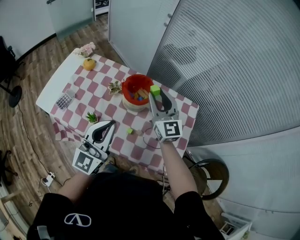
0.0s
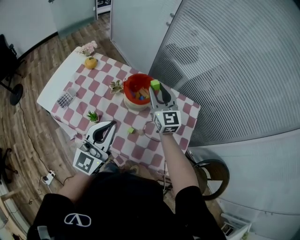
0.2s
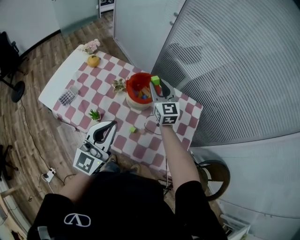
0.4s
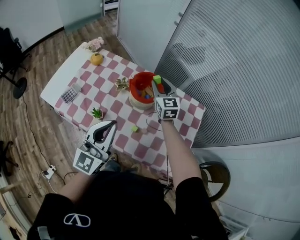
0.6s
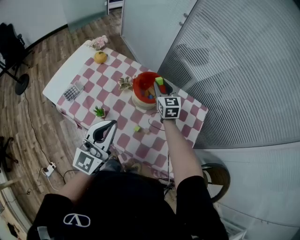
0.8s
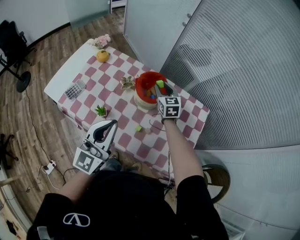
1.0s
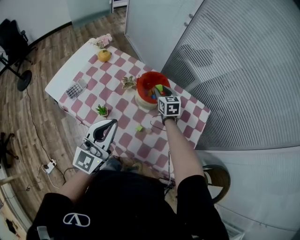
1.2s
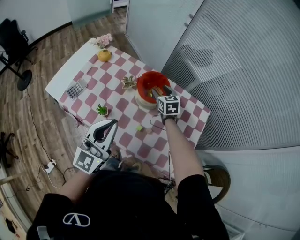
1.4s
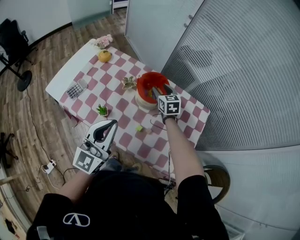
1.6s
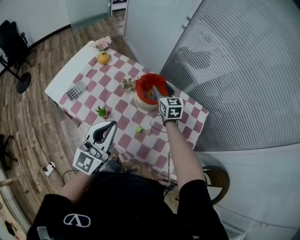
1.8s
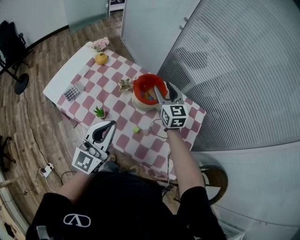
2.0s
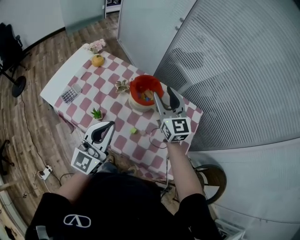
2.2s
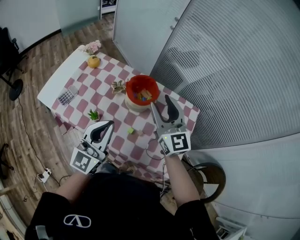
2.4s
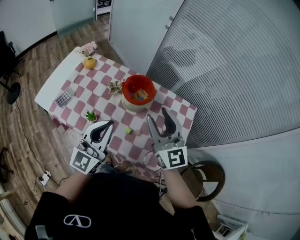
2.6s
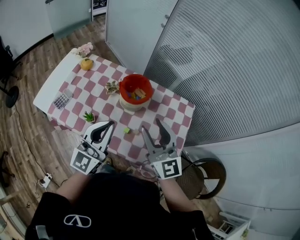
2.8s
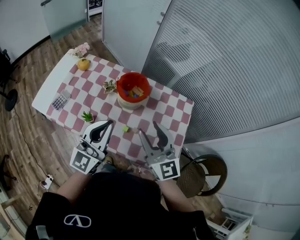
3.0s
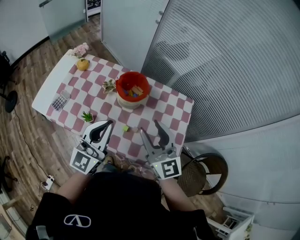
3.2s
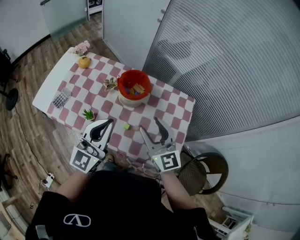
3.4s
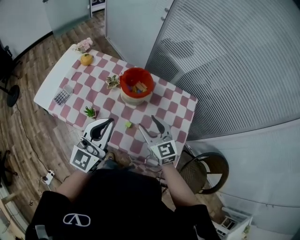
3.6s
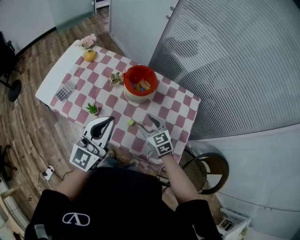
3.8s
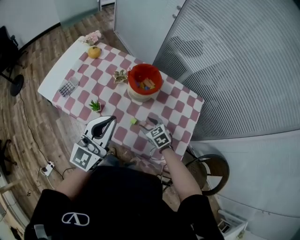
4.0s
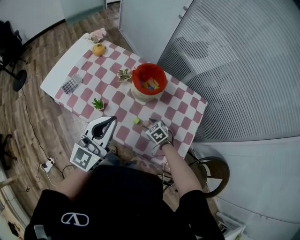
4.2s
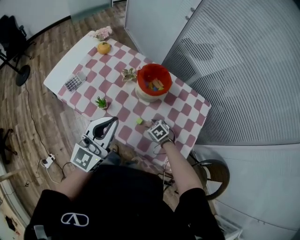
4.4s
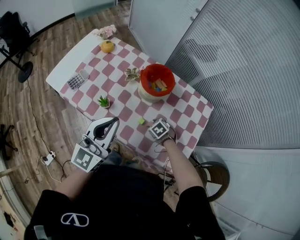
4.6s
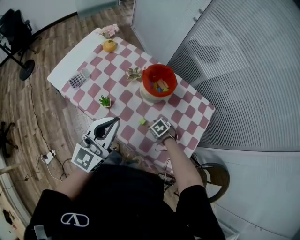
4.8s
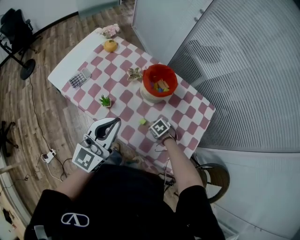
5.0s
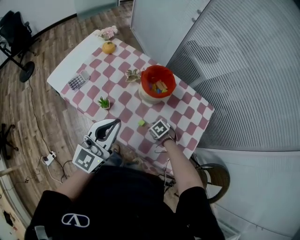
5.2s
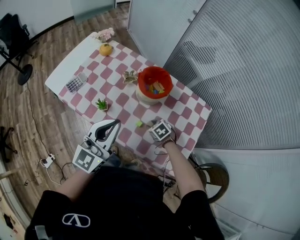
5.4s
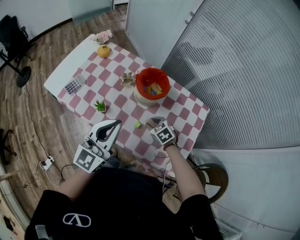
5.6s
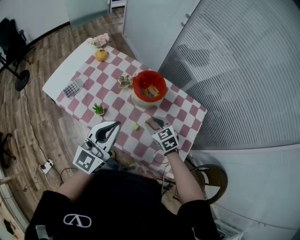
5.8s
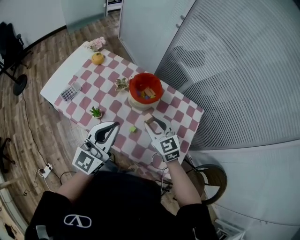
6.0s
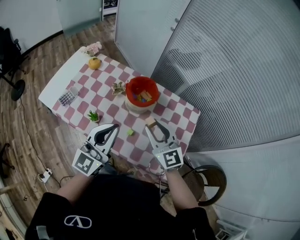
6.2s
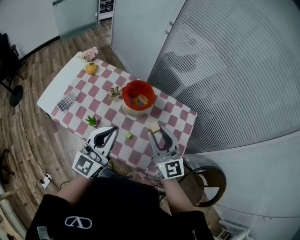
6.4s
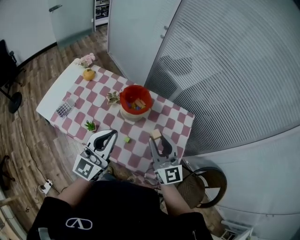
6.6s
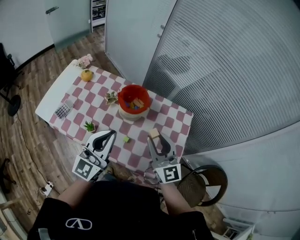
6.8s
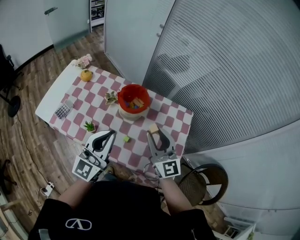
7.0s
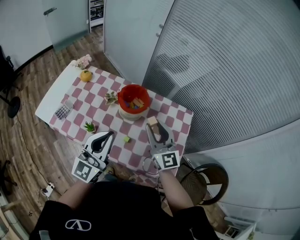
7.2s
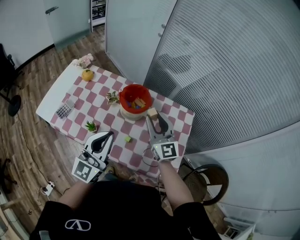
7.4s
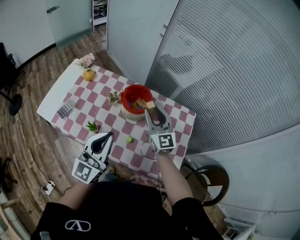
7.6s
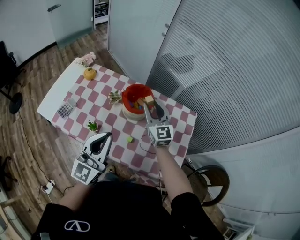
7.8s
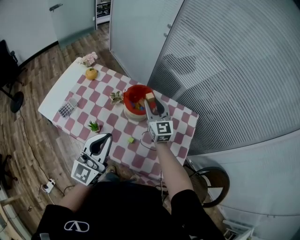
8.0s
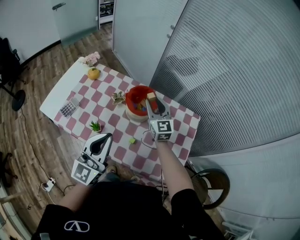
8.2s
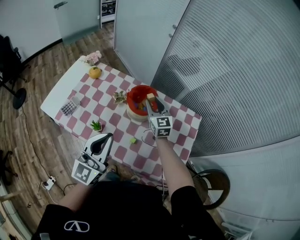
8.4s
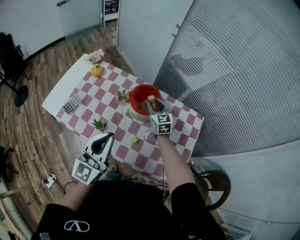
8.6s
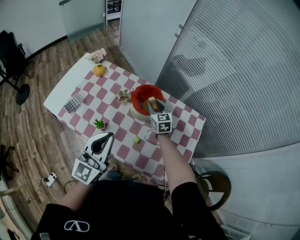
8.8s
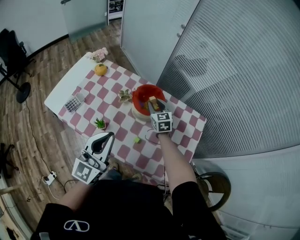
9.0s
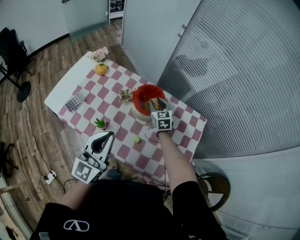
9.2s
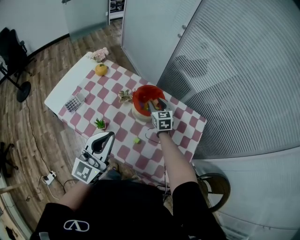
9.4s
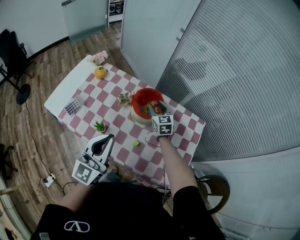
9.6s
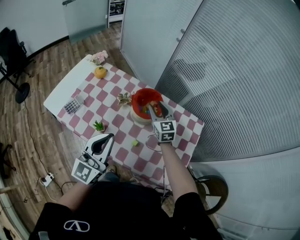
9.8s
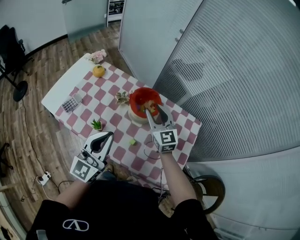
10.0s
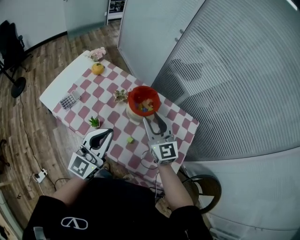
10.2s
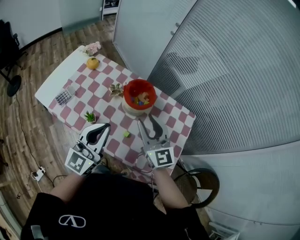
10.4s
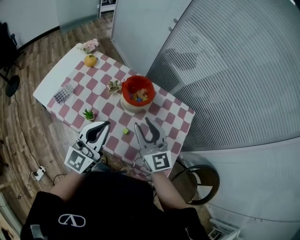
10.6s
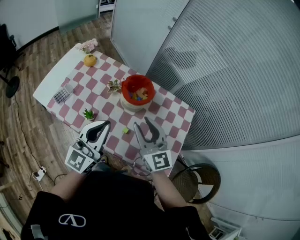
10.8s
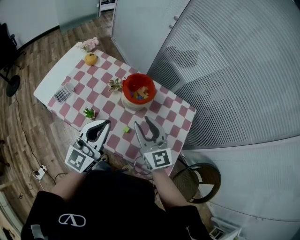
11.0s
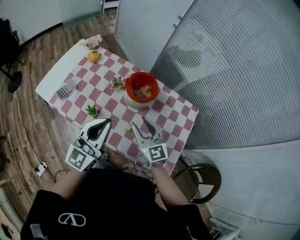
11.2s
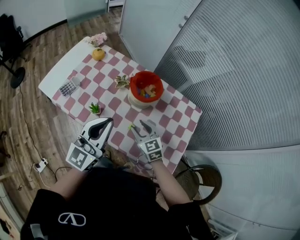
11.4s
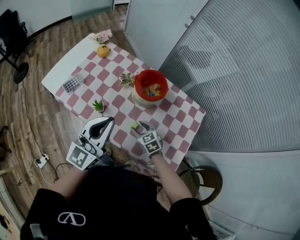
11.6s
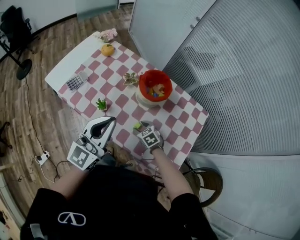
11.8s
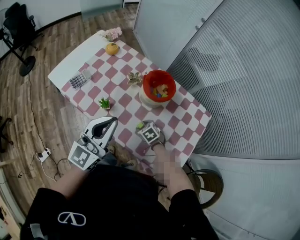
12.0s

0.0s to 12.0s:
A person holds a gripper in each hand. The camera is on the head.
0.0s to 1.6s: The right gripper heads downward and forward, covering roughly 20 cm, and tips its fingers downward by some 30 degrees.
1.6s to 3.0s: The right gripper is displaced backward and upward by approximately 35 cm, and tips its fingers upward by some 30 degrees.
3.0s to 4.4s: The right gripper is displaced downward by roughly 40 cm, and points its fingers some 70 degrees further downward.
4.4s to 6.0s: The right gripper travels upward by approximately 25 cm, and tilts its fingers some 40 degrees upward.
6.0s to 7.6s: The right gripper goes approximately 10 cm upward and forward, and rotates roughly 30 degrees.
7.6s to 9.0s: The right gripper heads downward and forward, covering roughly 20 cm, and changes its angle by approximately 30 degrees.
9.0s to 10.4s: The right gripper is displaced backward and upward by approximately 25 cm, and changes its angle by roughly 30 degrees.
10.4s to 12.0s: The right gripper is displaced downward by about 35 cm, and tips its fingers downward by about 60 degrees.

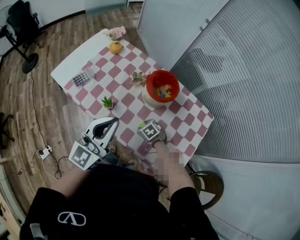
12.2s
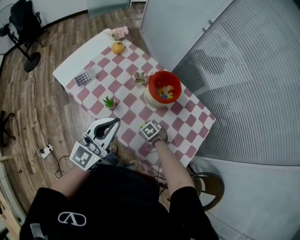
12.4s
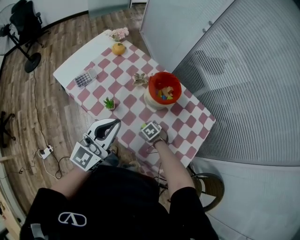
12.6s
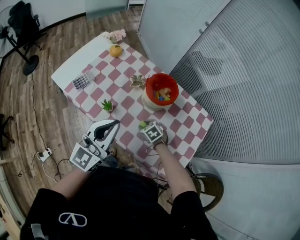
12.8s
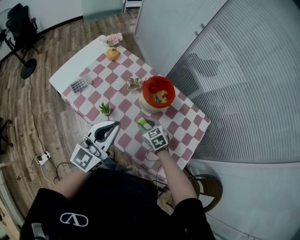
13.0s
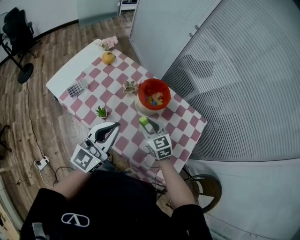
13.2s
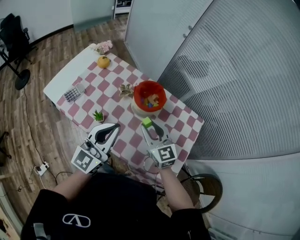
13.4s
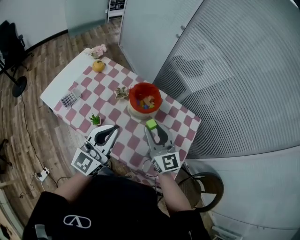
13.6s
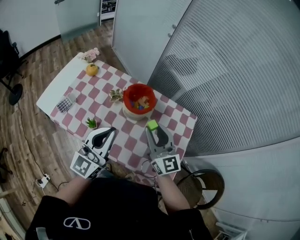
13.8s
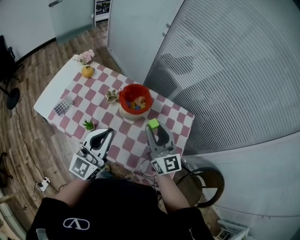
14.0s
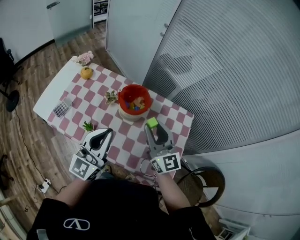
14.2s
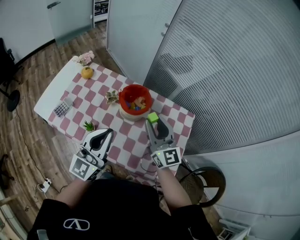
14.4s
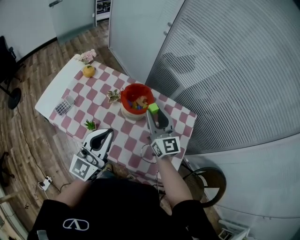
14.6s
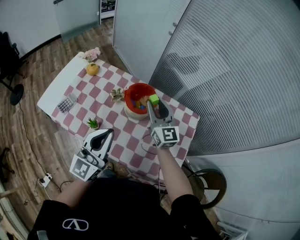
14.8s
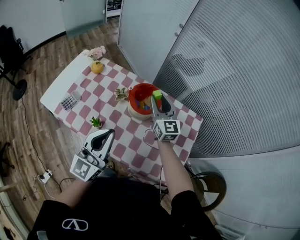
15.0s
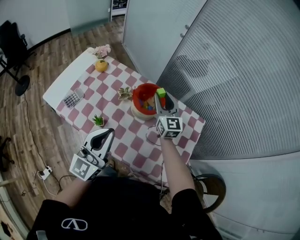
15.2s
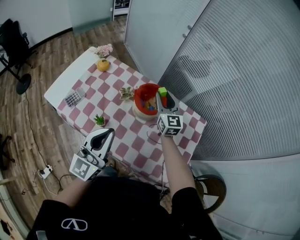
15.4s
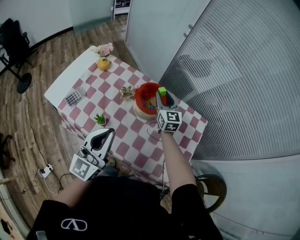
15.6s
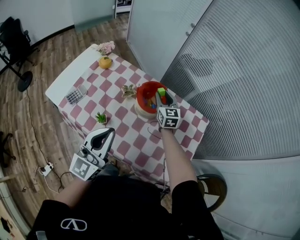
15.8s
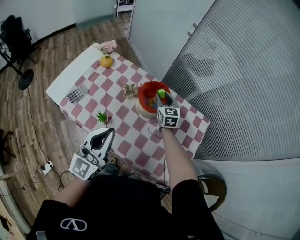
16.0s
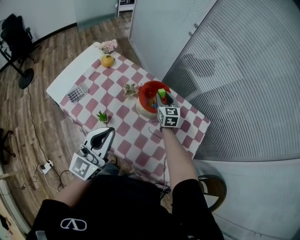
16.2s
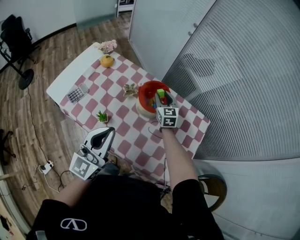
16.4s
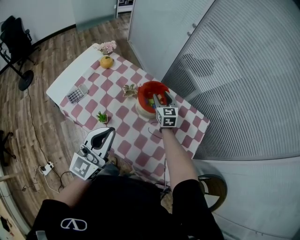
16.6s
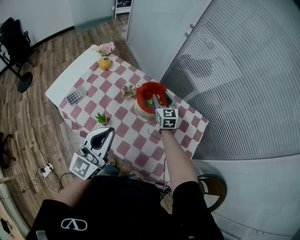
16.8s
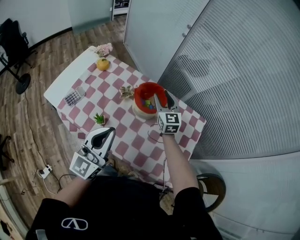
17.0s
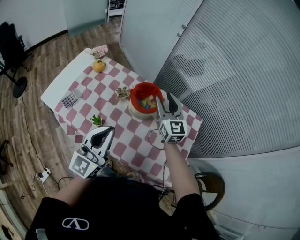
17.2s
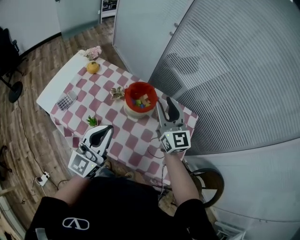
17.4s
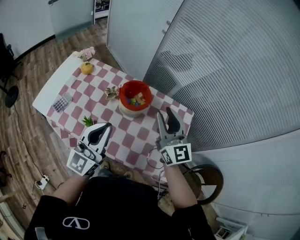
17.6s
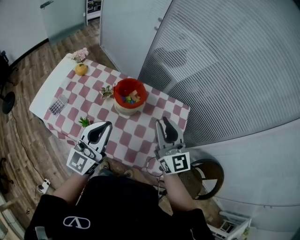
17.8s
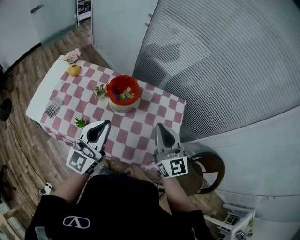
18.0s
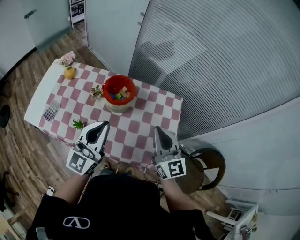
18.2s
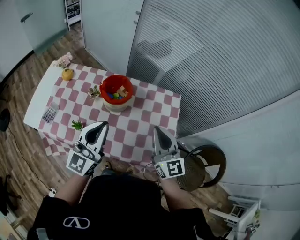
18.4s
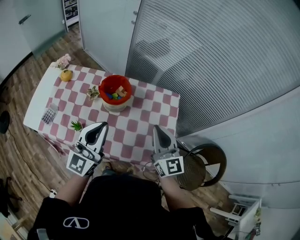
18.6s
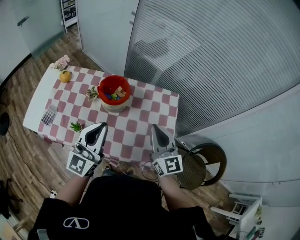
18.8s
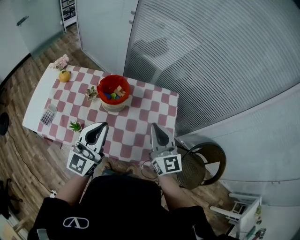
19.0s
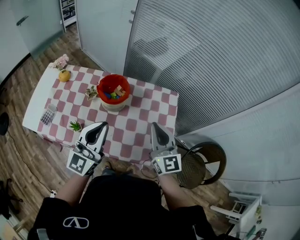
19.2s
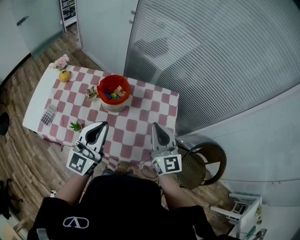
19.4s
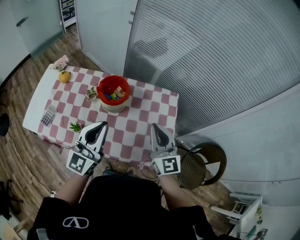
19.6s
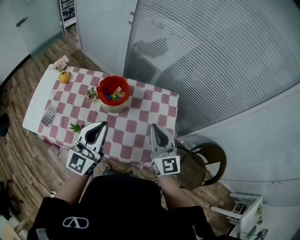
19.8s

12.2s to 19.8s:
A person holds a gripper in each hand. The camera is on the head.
12.2s to 13.8s: The left gripper moves about 5 cm, while the right gripper goes approximately 40 cm upward, and points its fingers about 70 degrees further upward.
13.8s to 15.2s: The right gripper travels forward by about 15 cm.
15.2s to 16.8s: The right gripper shifts roughly 10 cm downward.
16.8s to 18.2s: The left gripper is displaced to the right by roughly 10 cm. The right gripper travels backward, upward and to the right by roughly 35 cm, swivels some 20 degrees, and closes its fingers.
18.2s to 19.8s: The grippers stay close to where they were, moving slightly.

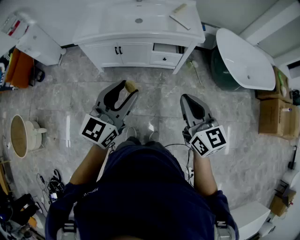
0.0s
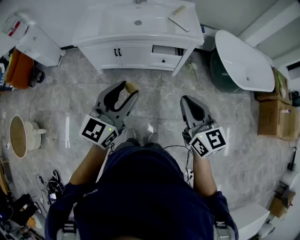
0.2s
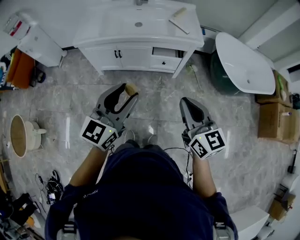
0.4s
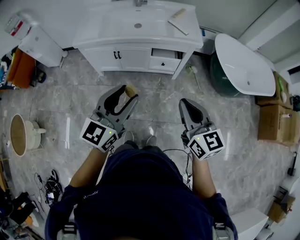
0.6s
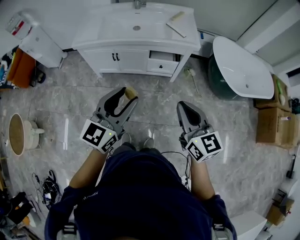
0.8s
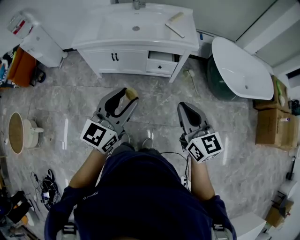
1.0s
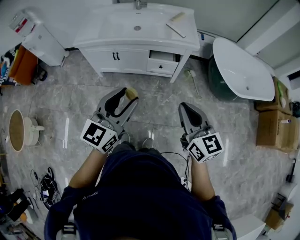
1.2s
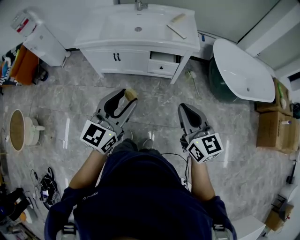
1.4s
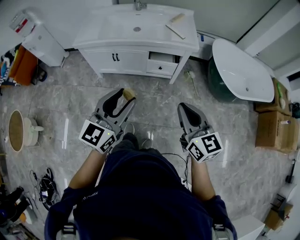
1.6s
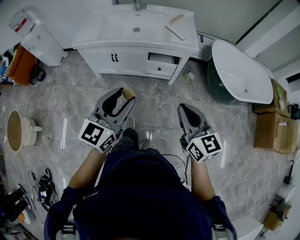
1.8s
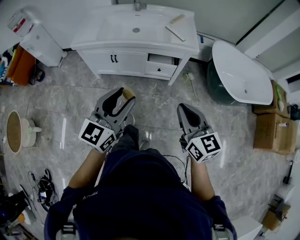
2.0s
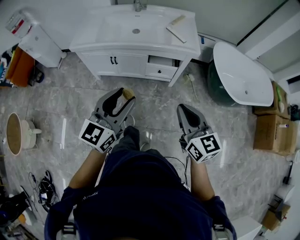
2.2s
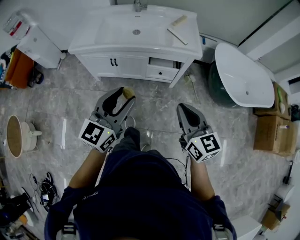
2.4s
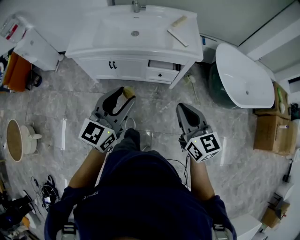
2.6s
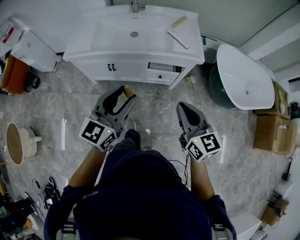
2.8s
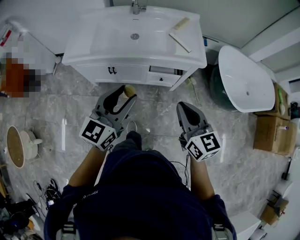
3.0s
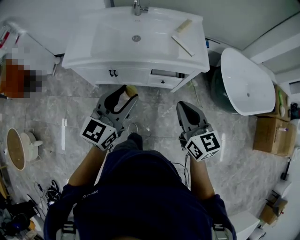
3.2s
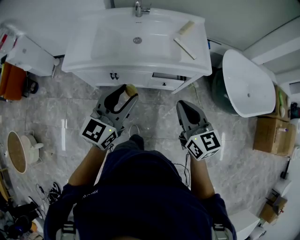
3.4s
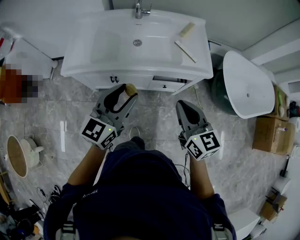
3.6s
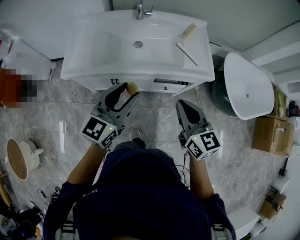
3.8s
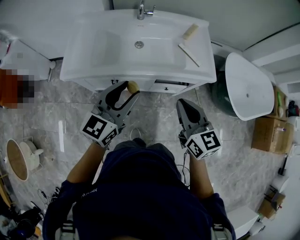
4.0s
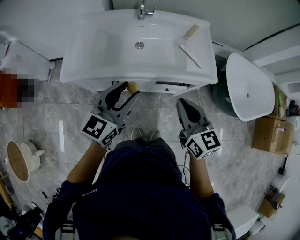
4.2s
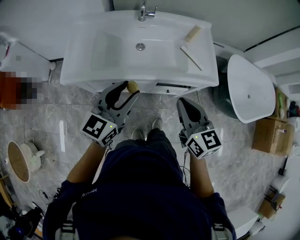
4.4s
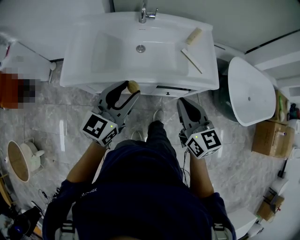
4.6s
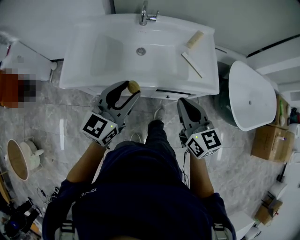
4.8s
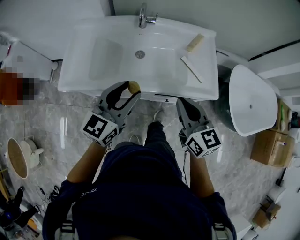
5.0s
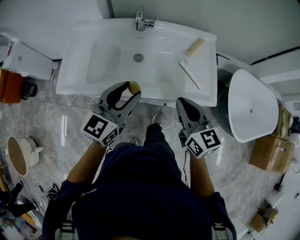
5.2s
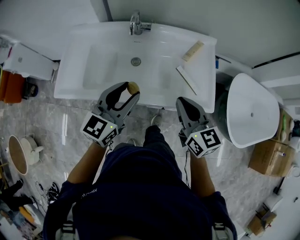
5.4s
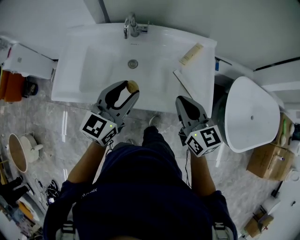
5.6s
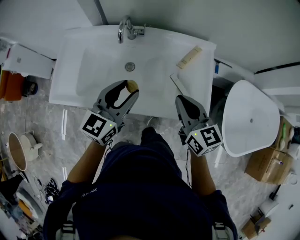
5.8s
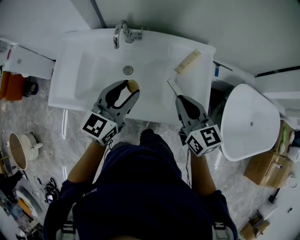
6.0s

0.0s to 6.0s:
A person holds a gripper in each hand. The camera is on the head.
0.0s to 1.6s: The grippers both shift to the right by about 5 cm.
1.6s to 3.0s: Both grippers travel together forward, approximately 20 cm.
3.0s to 4.4s: Both grippers move forward and to the left, some 20 cm.
4.4s to 6.0s: Both grippers travel together forward and to the right, some 30 cm.
